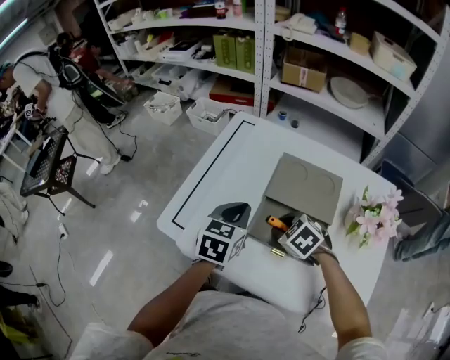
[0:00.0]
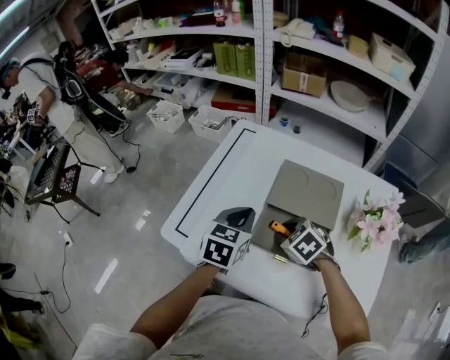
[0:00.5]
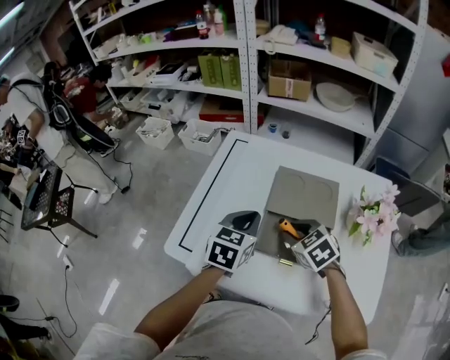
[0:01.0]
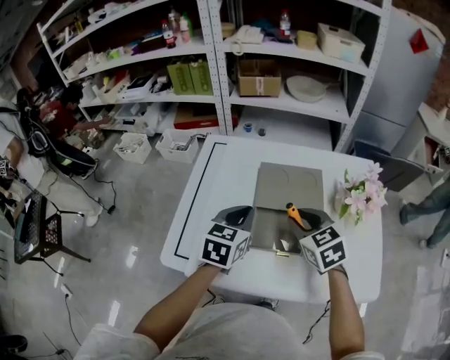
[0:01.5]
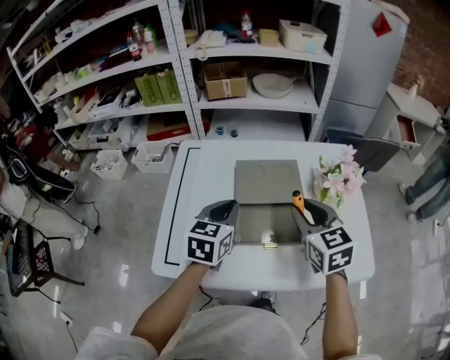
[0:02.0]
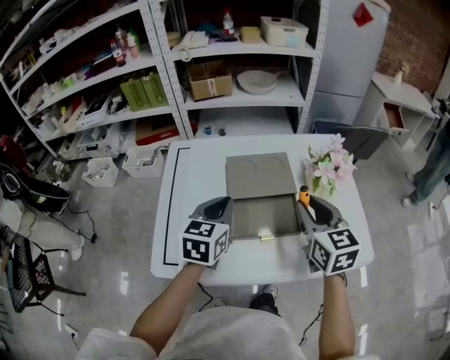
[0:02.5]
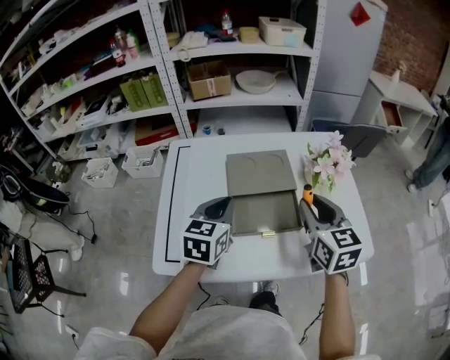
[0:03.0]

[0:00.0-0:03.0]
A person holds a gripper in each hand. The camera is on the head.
0:00.0 to 0:01.5: The right gripper shifts approximately 15 cm upward, and rotates some 40 degrees.
0:01.5 to 0:03.0: The right gripper moves to the right, upward and backward, some 15 cm, and turns by some 40 degrees.

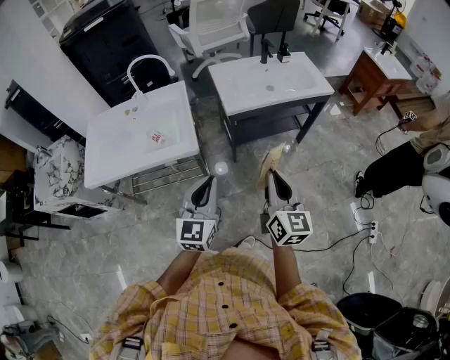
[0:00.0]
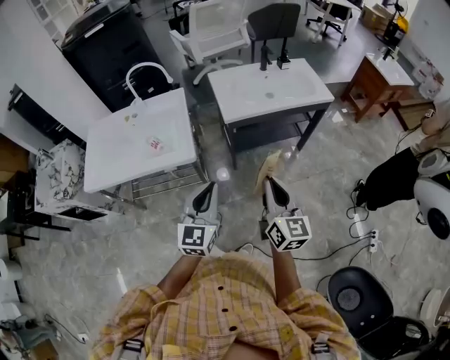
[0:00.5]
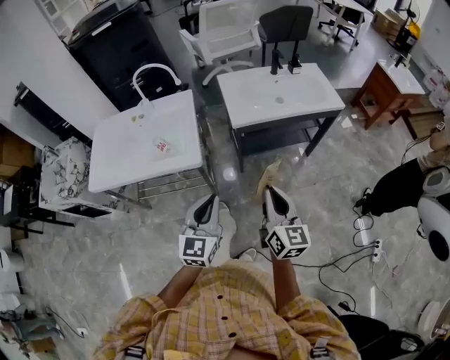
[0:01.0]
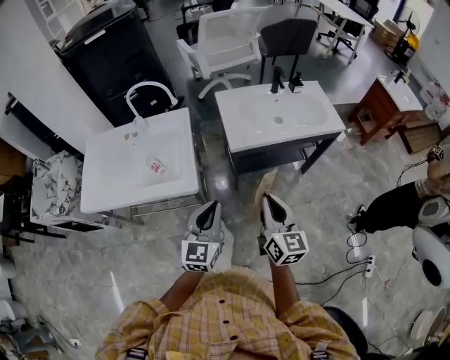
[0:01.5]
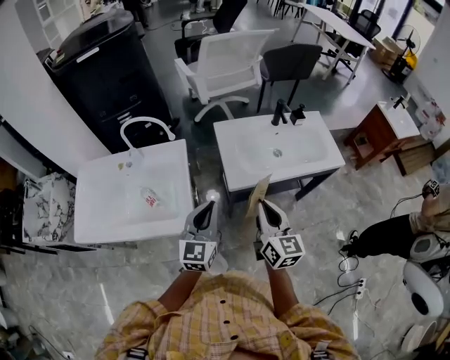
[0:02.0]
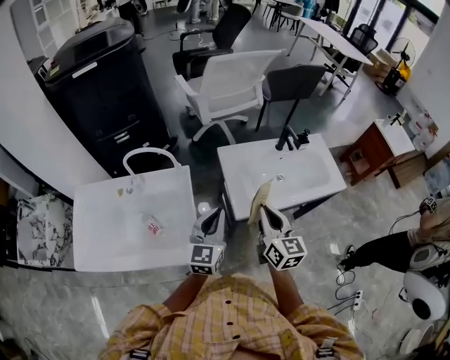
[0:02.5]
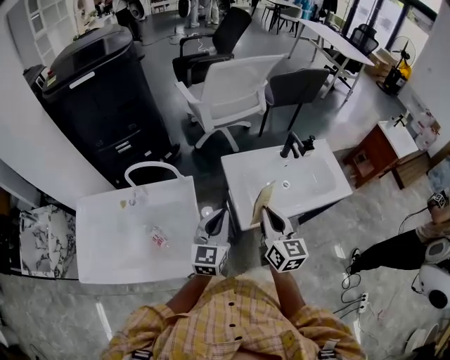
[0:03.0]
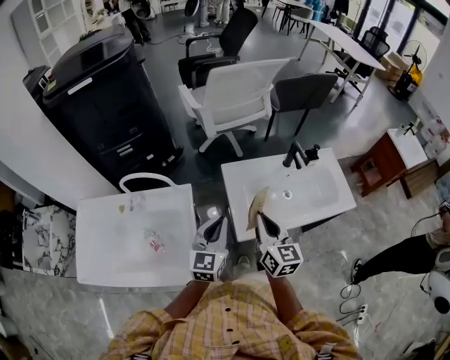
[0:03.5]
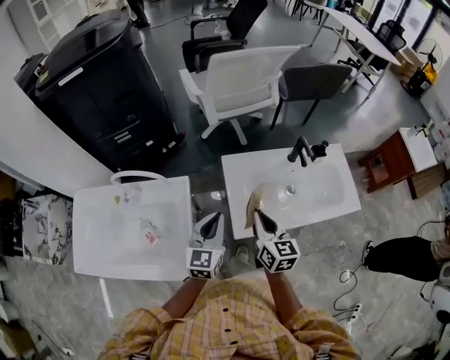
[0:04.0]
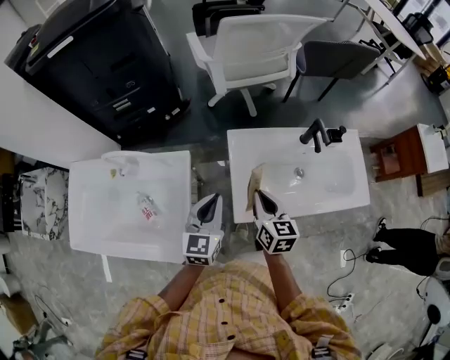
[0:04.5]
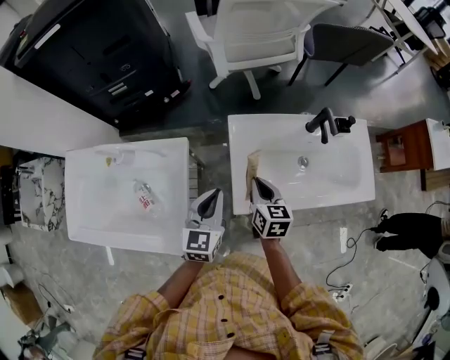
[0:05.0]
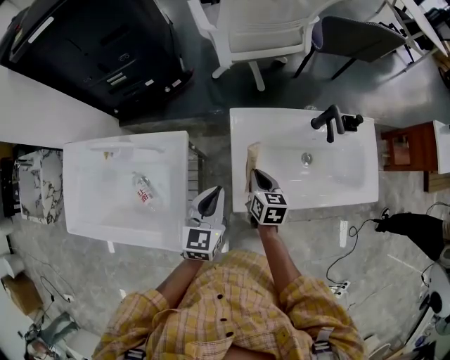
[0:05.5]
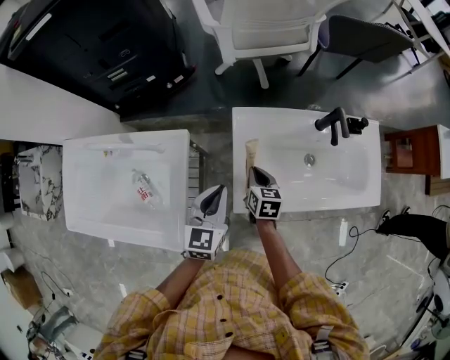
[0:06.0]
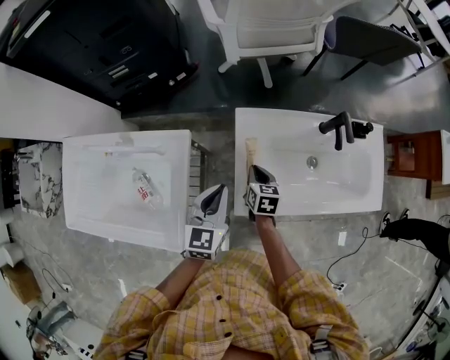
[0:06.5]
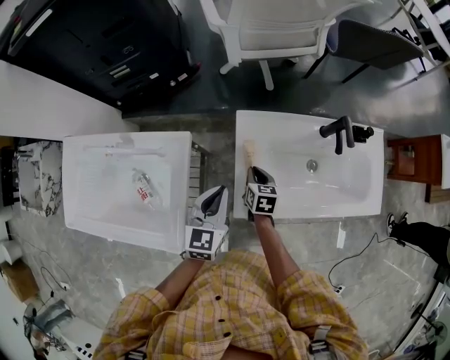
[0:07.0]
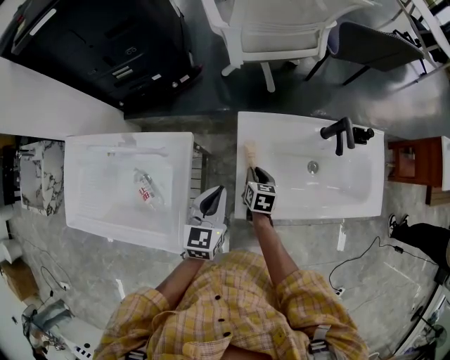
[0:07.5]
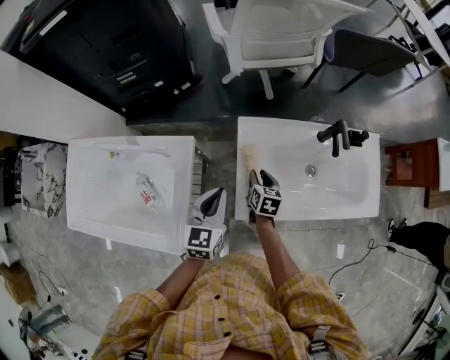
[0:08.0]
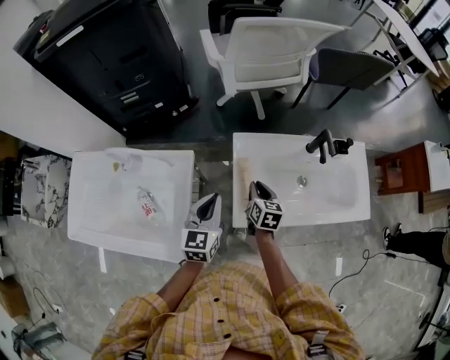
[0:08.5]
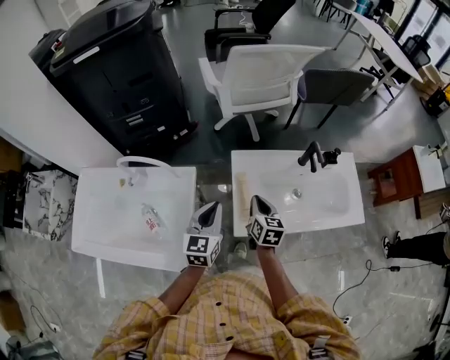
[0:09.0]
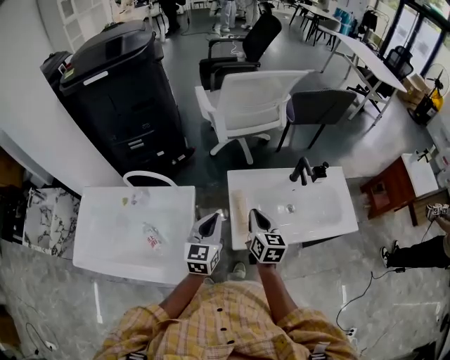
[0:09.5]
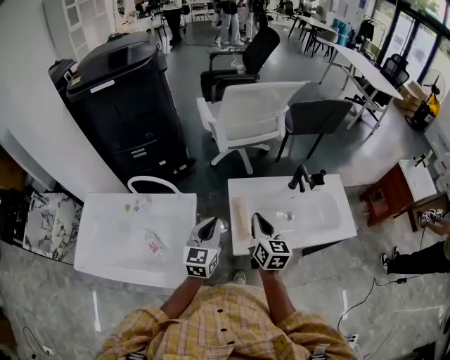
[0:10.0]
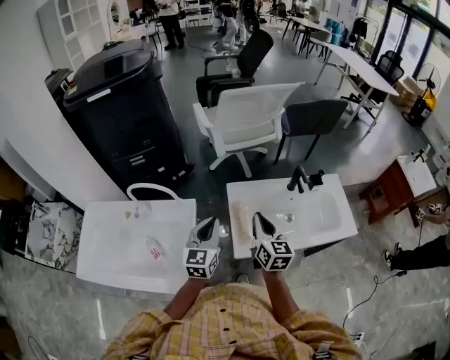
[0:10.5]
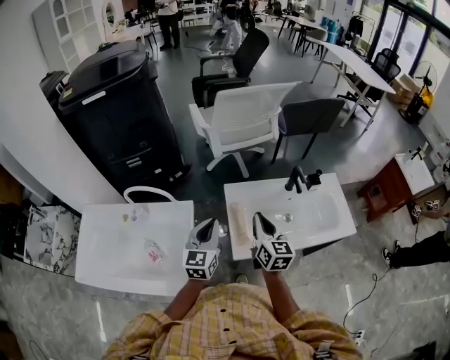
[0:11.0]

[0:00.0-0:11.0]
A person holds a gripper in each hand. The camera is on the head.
0:00.0 to 0:02.0: The two grippers go roughly 30 cm forward.
0:02.0 to 0:03.5: The grippers both shift forward by about 20 cm.
0:03.5 to 0:05.5: The left gripper travels downward and forward by roughly 10 cm. The right gripper shifts approximately 25 cm downward and forward, and turns by approximately 30 degrees.
0:05.5 to 0:07.5: The right gripper goes about 10 cm downward.
0:07.5 to 0:09.0: The right gripper goes roughly 15 cm upward, and rotates about 20 degrees. The left gripper shifts approximately 10 cm upward.
0:09.0 to 0:11.0: The right gripper travels upward by some 15 cm, and rotates about 20 degrees. Meanwhile the left gripper heads upward, covering roughly 5 cm.

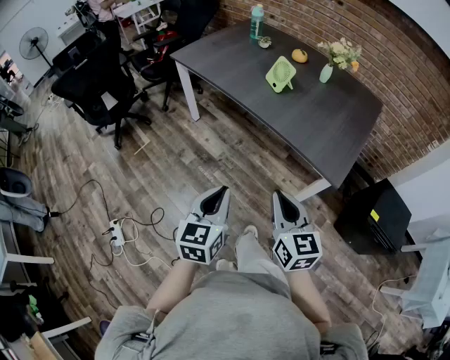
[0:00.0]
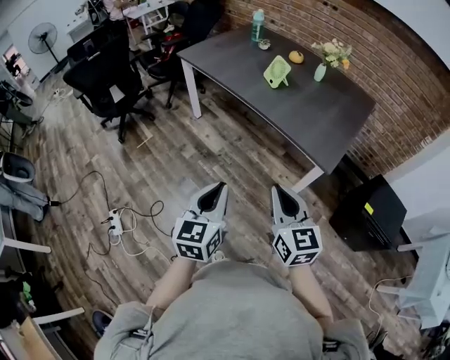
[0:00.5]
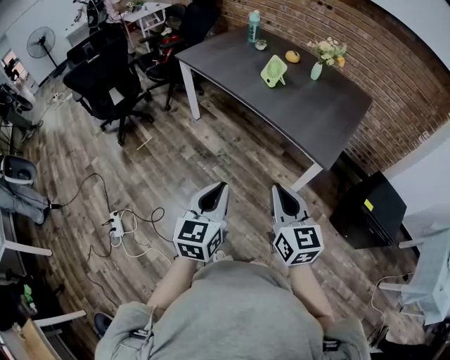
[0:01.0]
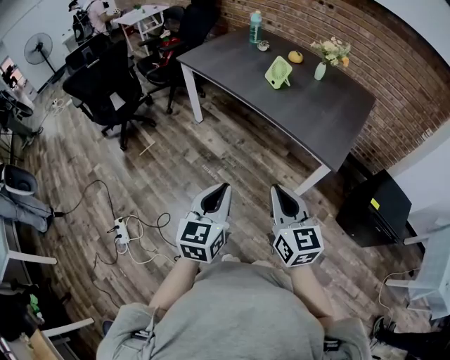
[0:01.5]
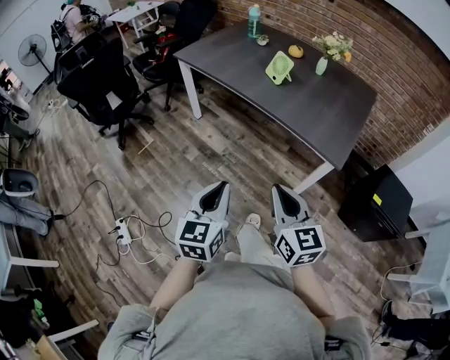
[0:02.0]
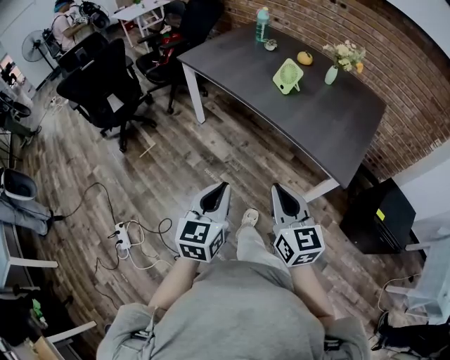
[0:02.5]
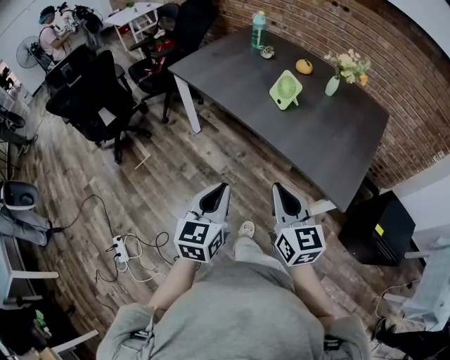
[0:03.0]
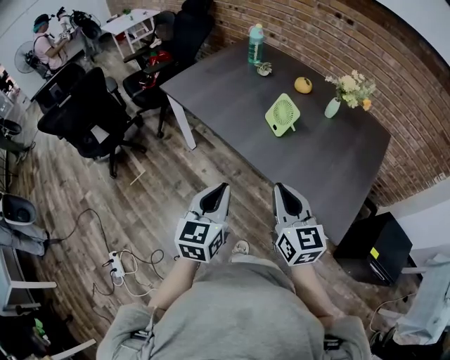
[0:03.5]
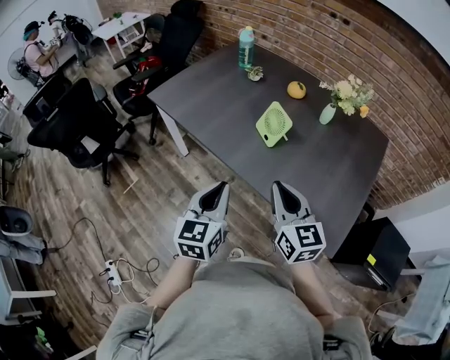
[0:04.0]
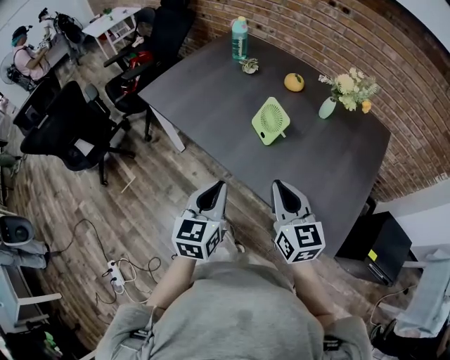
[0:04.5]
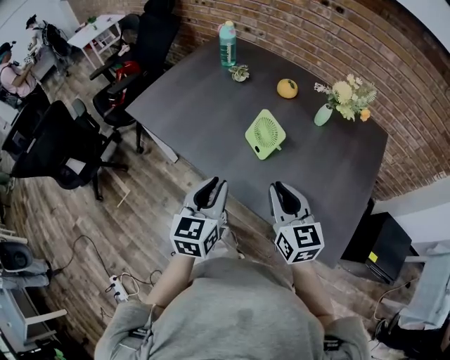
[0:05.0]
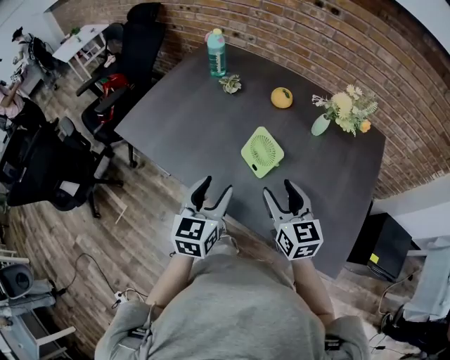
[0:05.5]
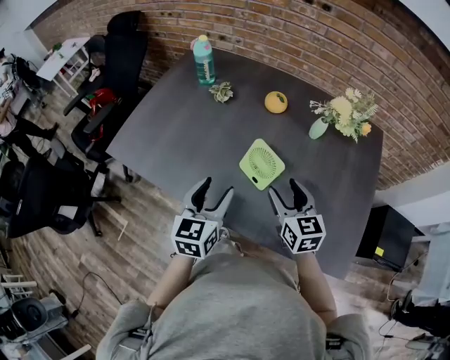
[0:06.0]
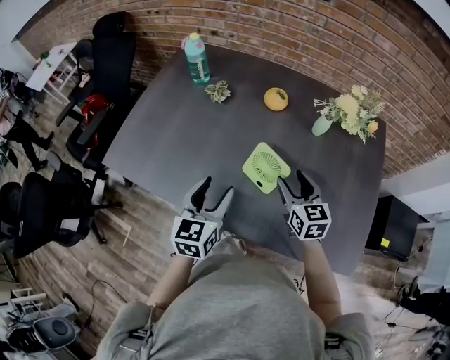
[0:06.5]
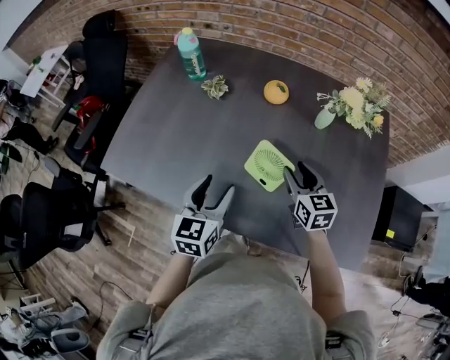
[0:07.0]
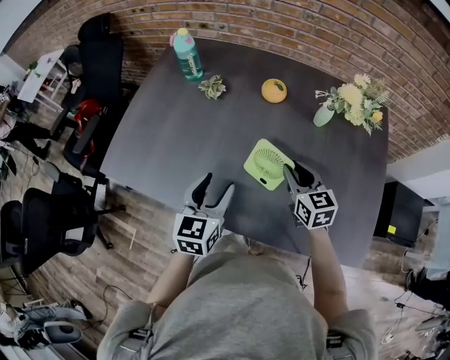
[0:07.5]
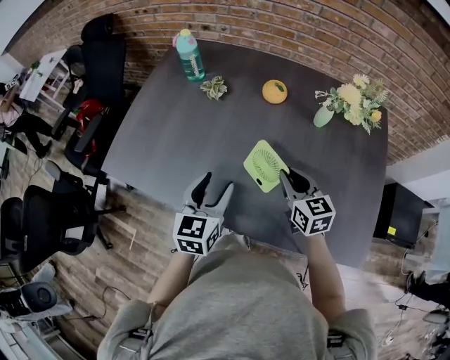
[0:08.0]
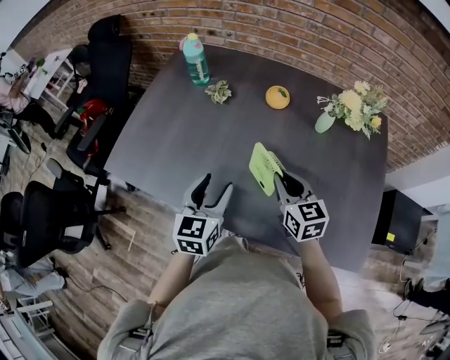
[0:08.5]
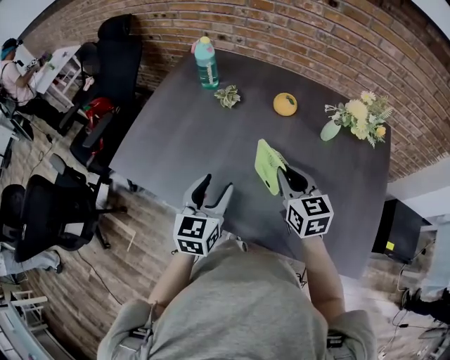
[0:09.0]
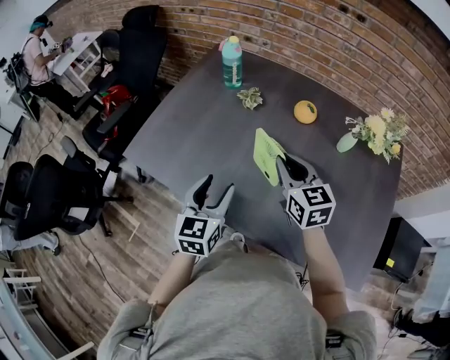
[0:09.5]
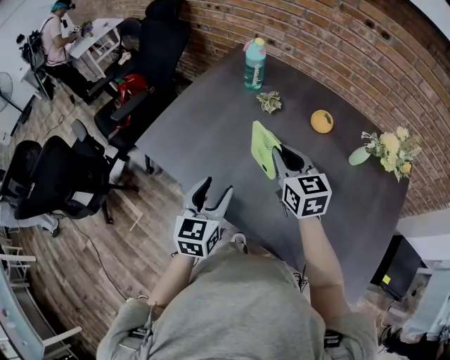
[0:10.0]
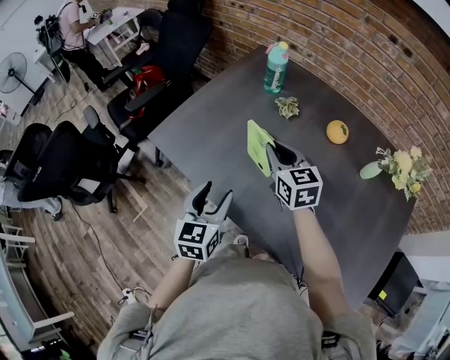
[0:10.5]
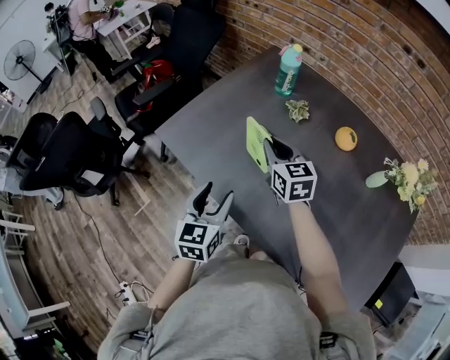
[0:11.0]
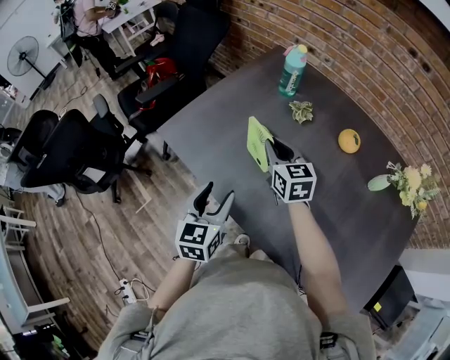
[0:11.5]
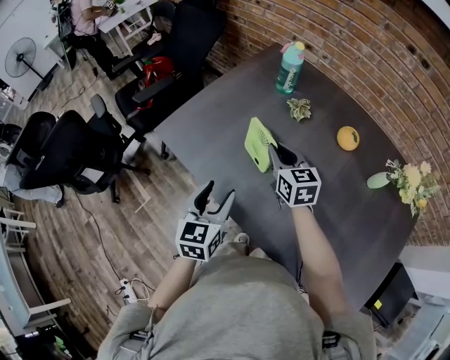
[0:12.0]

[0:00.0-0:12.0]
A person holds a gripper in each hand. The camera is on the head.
0:00.0 to 0:02.0: Both grippers travel together backward, roughly 10 cm.
0:02.0 to 0:04.0: The grippers both shift forward by some 40 cm.
0:04.0 to 0:06.0: Both grippers travel together forward, approximately 25 cm. The left gripper opens its fingers, while the right gripper opens its fingers.
0:06.0 to 0:08.0: The two grippers go about 5 cm forward. The right gripper closes.
0:08.0 to 0:10.0: The left gripper goes roughly 10 cm to the left, while the right gripper travels to the left, upward and forward by about 20 cm.
0:10.0 to 0:12.0: The right gripper shifts approximately 10 cm to the left, forward and downward. The left gripper changes place by some 5 cm.

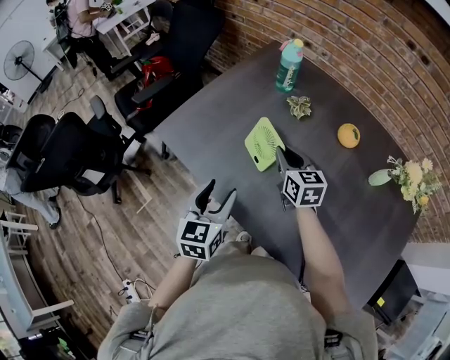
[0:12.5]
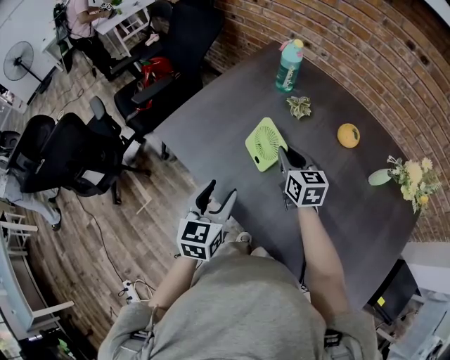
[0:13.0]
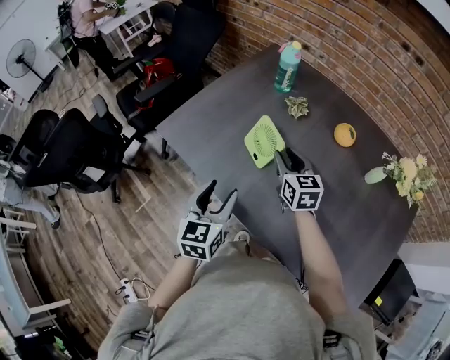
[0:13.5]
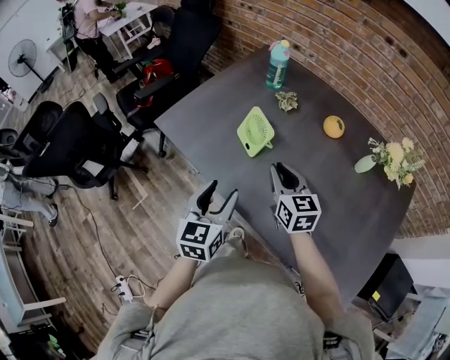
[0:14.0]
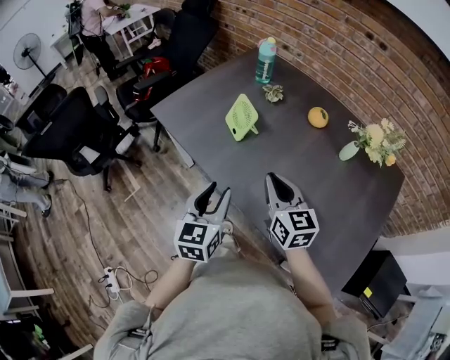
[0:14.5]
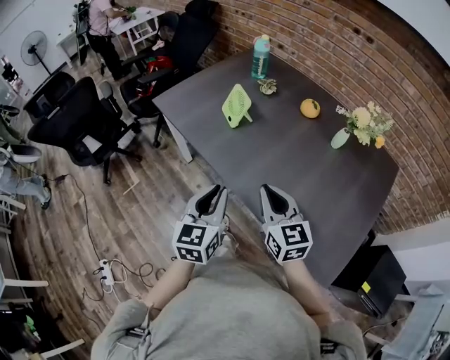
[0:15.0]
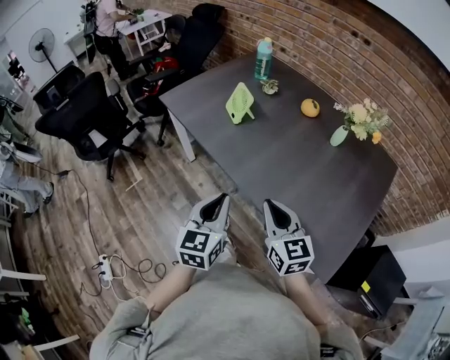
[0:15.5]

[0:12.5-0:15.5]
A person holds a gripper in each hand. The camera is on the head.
0:12.5 to 0:14.0: The right gripper heads backward, covering roughly 15 cm. The left gripper is displaced backward by approximately 10 cm.
0:14.0 to 0:15.5: Both grippers travel together backward, roughly 30 cm. The left gripper closes its fingers.
